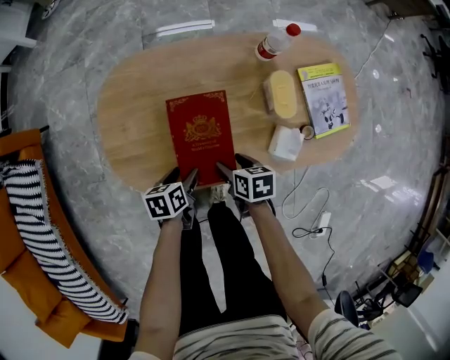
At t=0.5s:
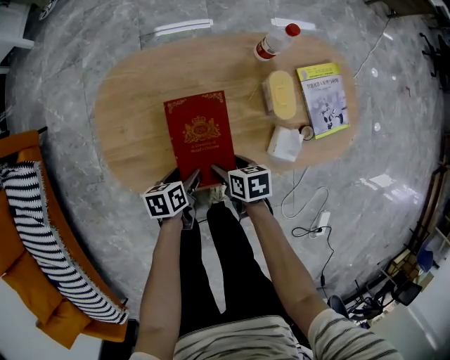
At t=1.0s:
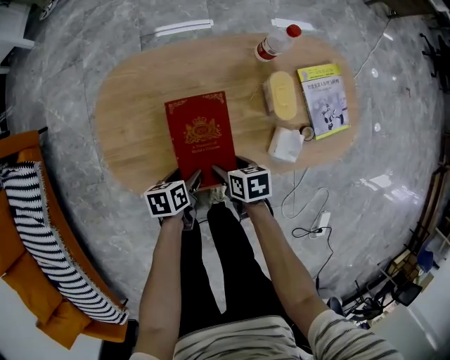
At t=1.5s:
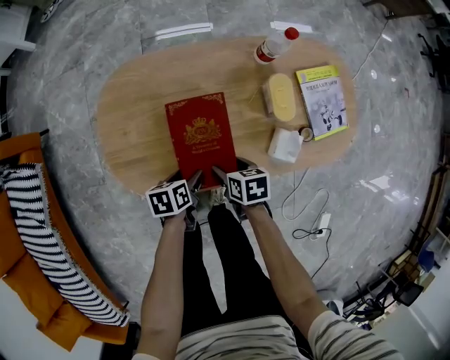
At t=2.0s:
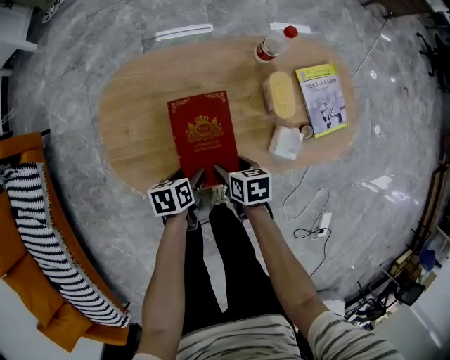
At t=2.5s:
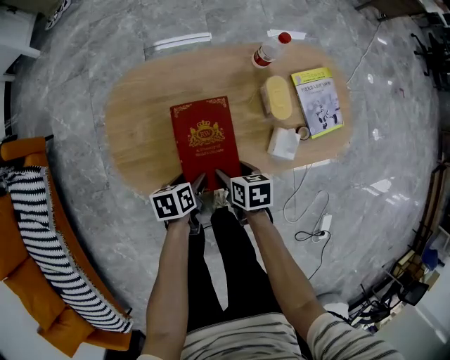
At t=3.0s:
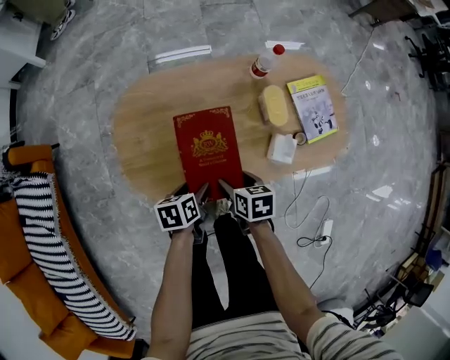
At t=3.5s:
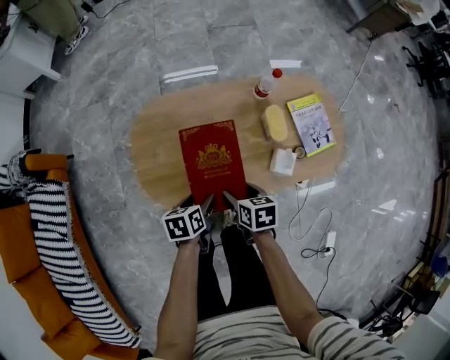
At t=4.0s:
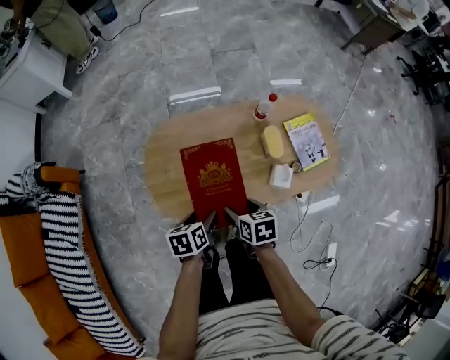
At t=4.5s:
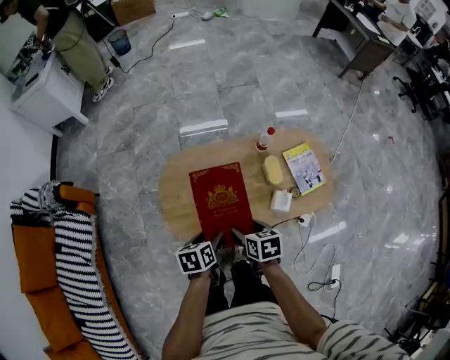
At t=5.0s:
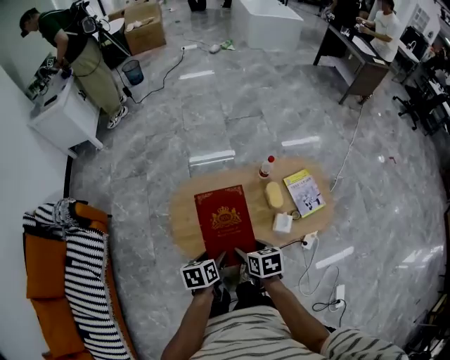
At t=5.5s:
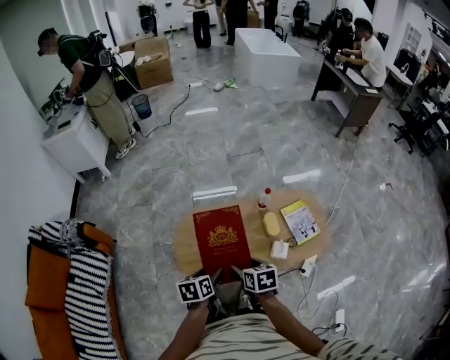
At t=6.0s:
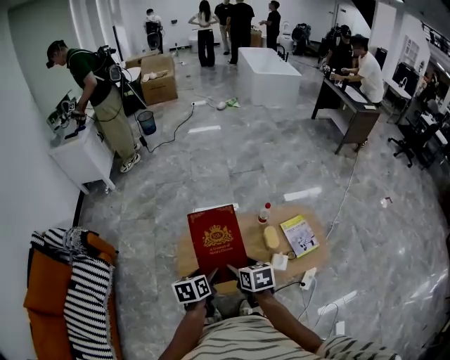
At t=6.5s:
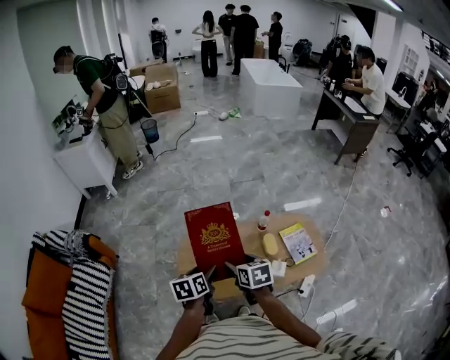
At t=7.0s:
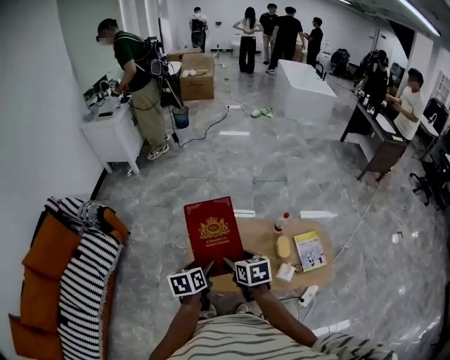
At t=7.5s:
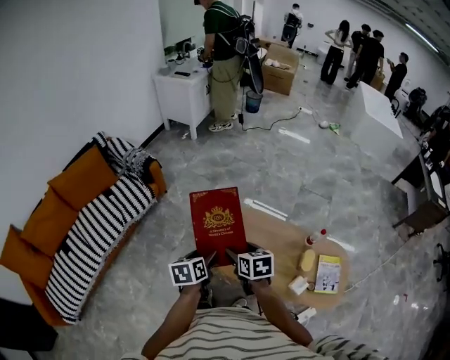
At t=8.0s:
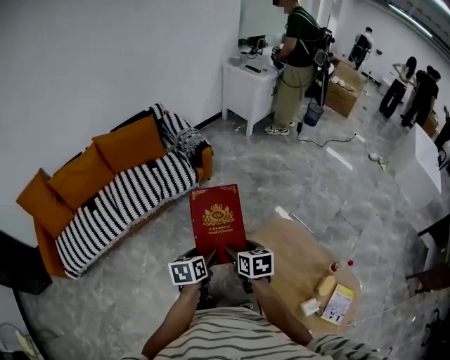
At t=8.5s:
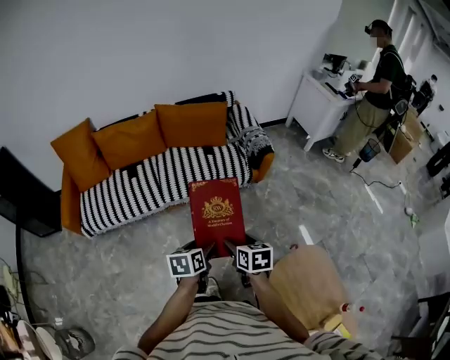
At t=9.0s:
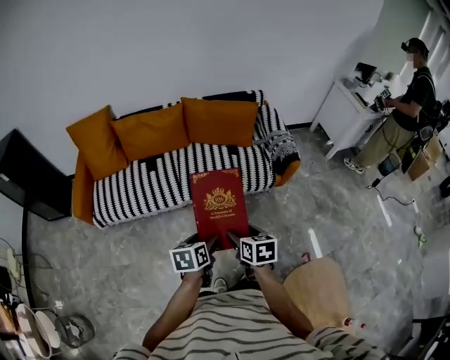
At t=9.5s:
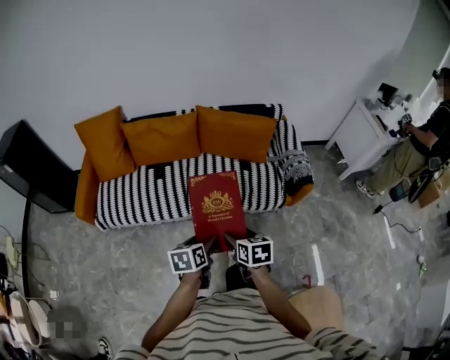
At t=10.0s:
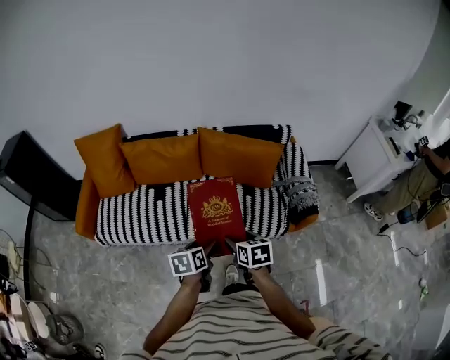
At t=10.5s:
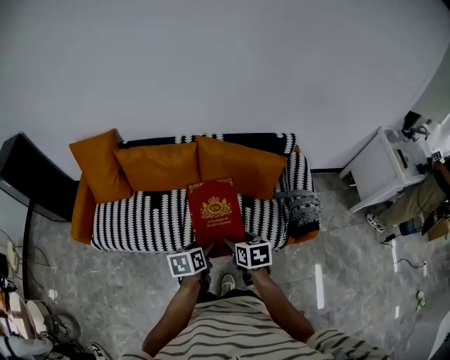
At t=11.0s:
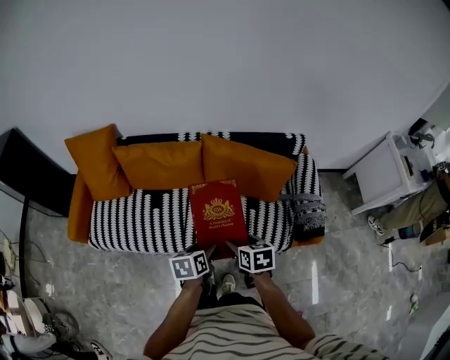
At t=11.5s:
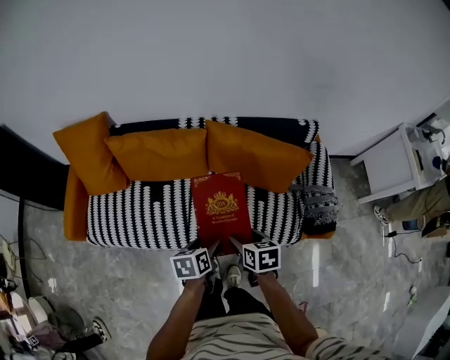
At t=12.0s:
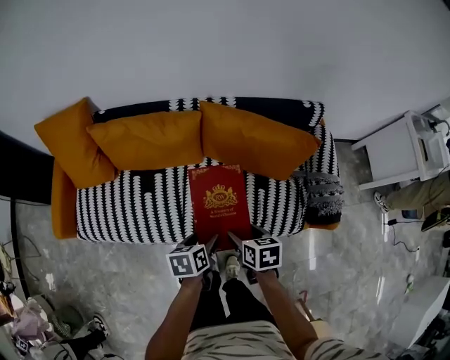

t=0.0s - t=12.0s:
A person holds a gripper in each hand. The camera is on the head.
t=0.0s - t=2.0s: The grippers stay close to where they were, moving slightly.
t=2.0s - t=4.0s: Both grippers move upward, about 20 cm.
t=4.0s - t=6.0s: Both grippers travel together upward, about 25 cm.
t=6.0s - t=8.0s: The right gripper shifts by approximately 35 cm, and turns by roughly 50 degrees. Meanwhile the left gripper ends up some 30 cm from where it was, and rotates approximately 50 degrees.
t=8.0s - t=10.0s: The pair of grippers is taken about 60 cm. The right gripper swivels some 40 degrees; the left gripper rotates some 40 degrees.
t=10.0s - t=12.0s: Both grippers travel together forward and downward, approximately 25 cm.

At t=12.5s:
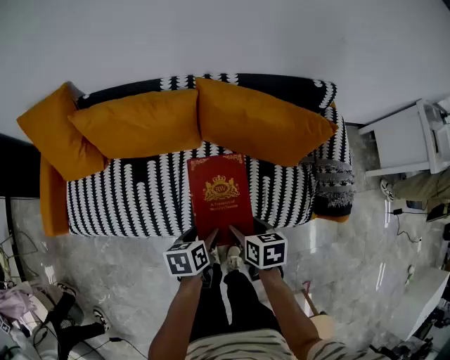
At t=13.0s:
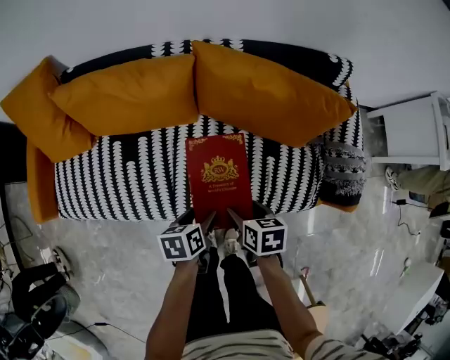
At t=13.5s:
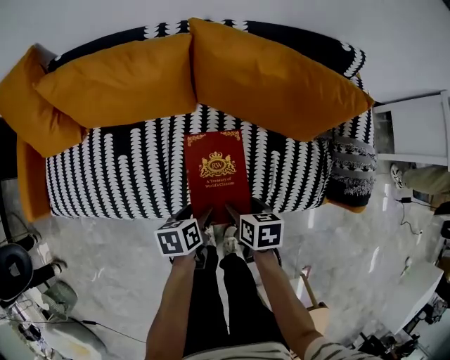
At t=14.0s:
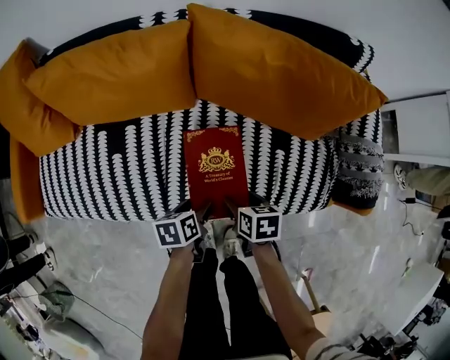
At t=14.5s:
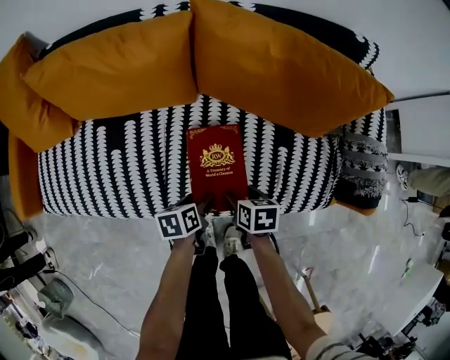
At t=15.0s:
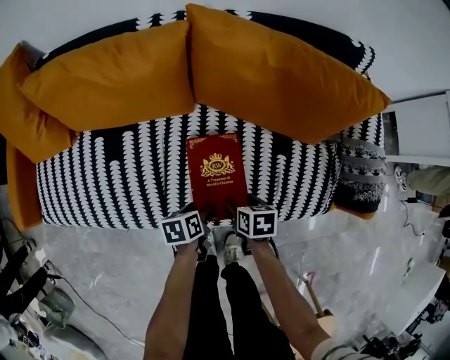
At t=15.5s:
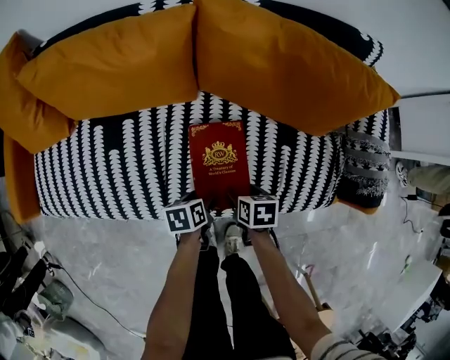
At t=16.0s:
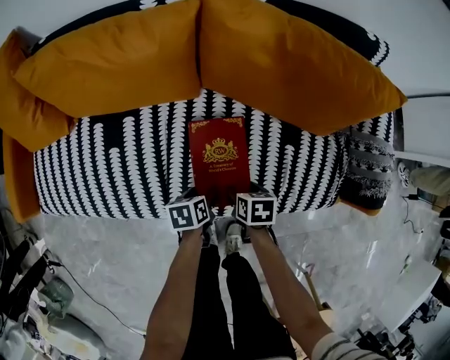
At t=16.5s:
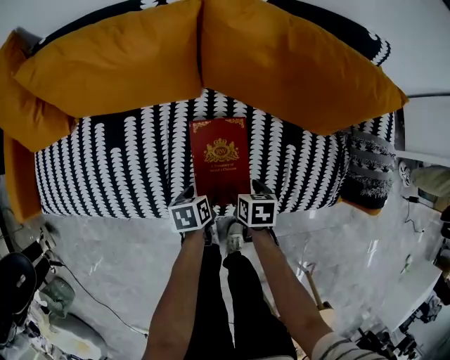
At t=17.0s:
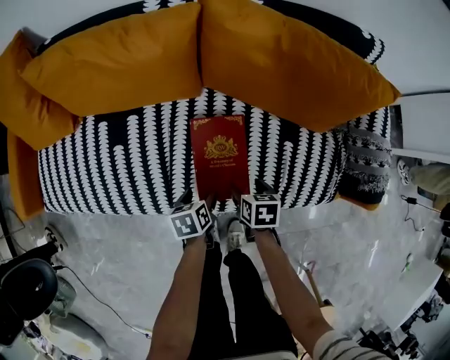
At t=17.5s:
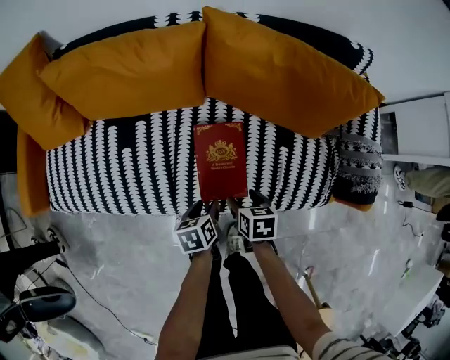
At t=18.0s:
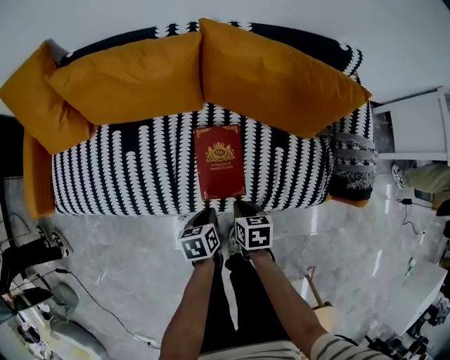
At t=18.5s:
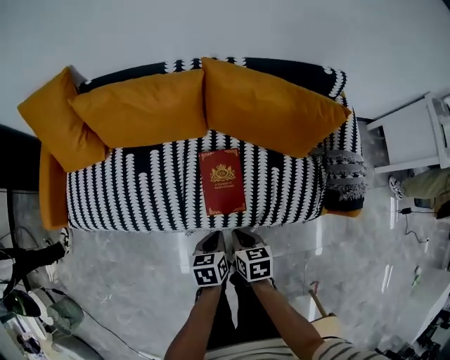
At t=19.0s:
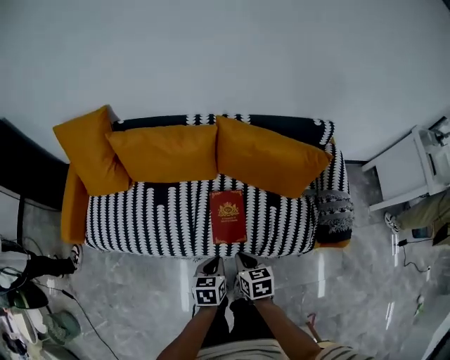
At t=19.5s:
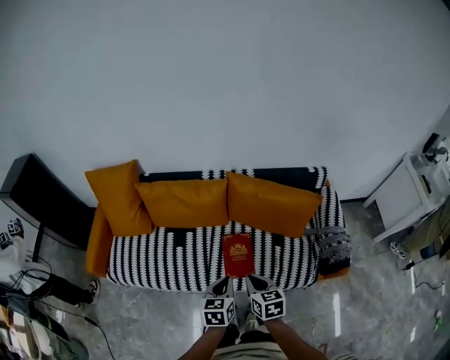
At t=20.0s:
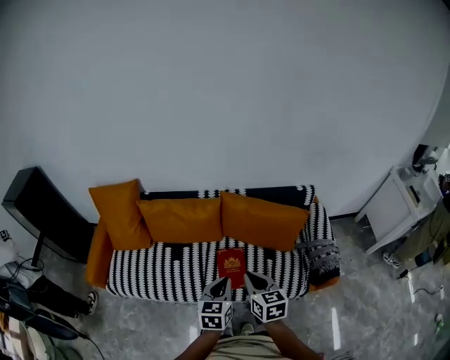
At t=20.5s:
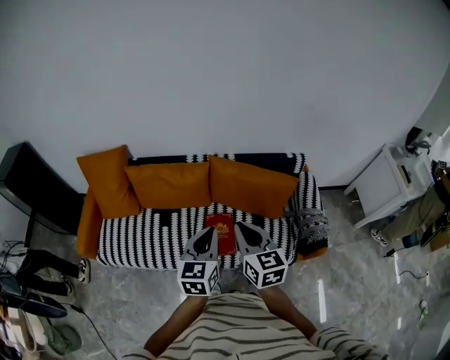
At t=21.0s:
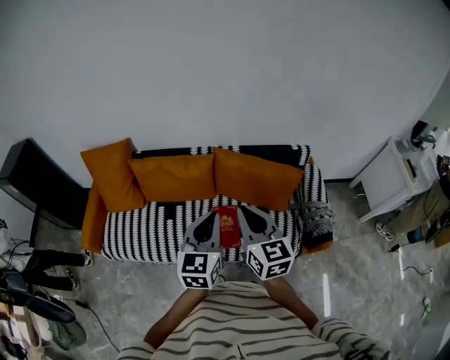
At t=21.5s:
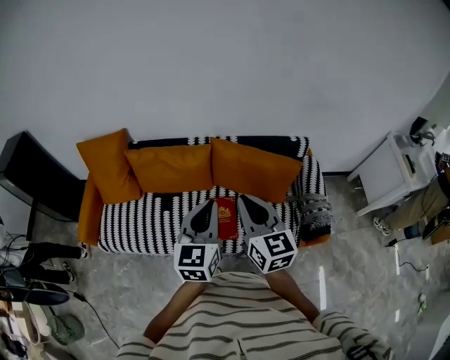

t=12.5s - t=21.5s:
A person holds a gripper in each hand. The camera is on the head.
t=12.5s - t=14.5s: Both grippers move downward, approximately 25 cm.
t=14.5s - t=17.0s: The grippers make only small movements.
t=17.0s - t=19.5s: The two grippers go some 40 cm upward. The left gripper turns by about 40 degrees, and closes. The right gripper turns by some 30 degrees, and closes.
t=19.5s - t=21.5s: Both grippers move upward, roughly 25 cm. The right gripper rotates approximately 30 degrees. The left gripper changes its angle by approximately 30 degrees.

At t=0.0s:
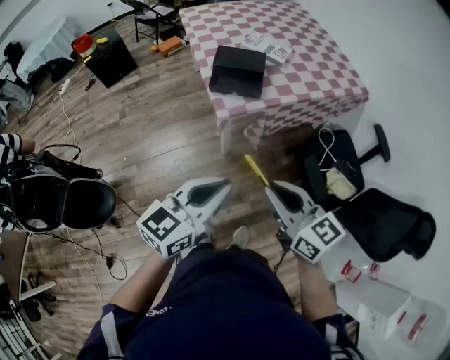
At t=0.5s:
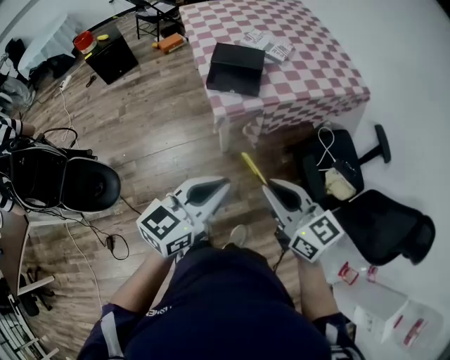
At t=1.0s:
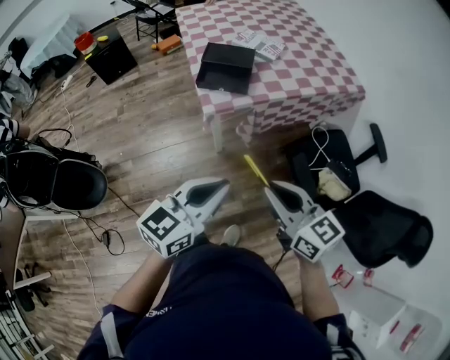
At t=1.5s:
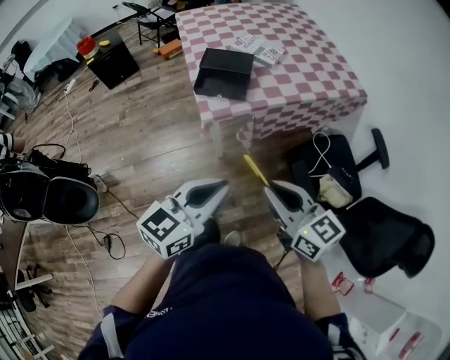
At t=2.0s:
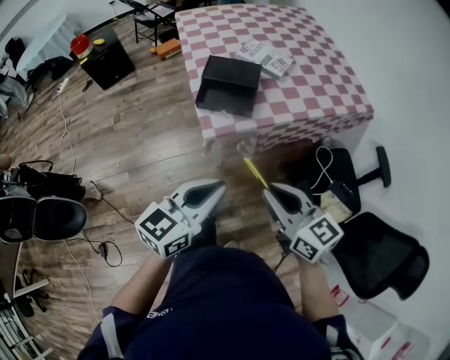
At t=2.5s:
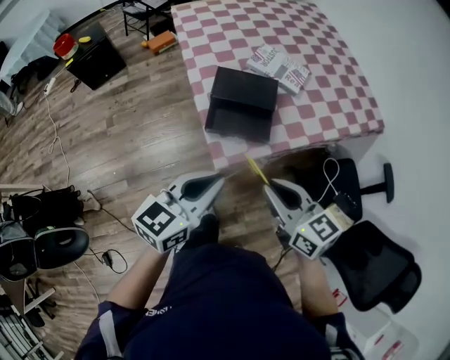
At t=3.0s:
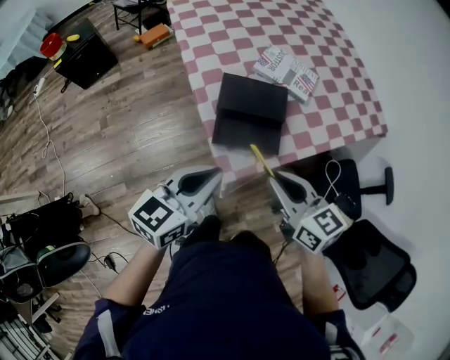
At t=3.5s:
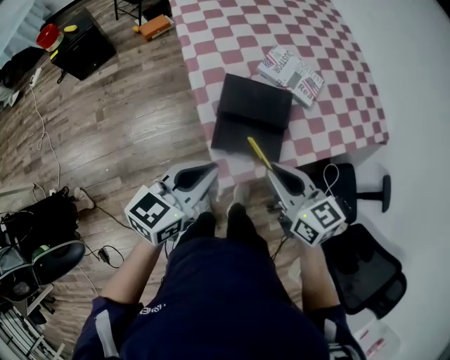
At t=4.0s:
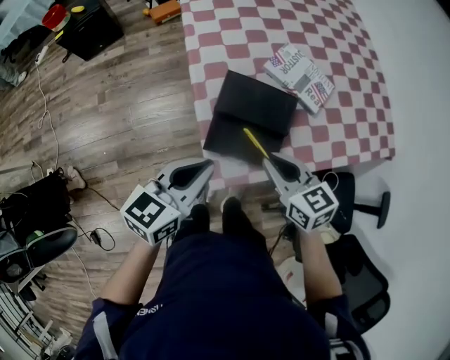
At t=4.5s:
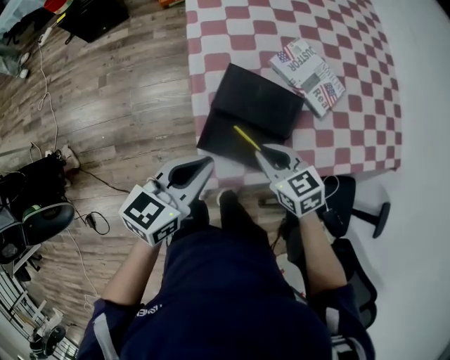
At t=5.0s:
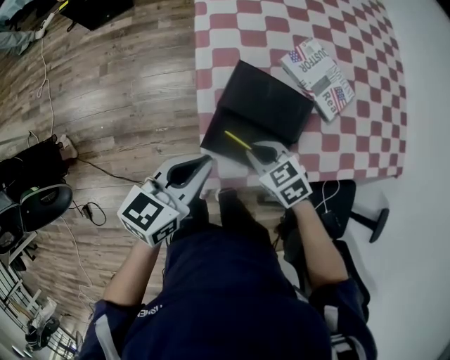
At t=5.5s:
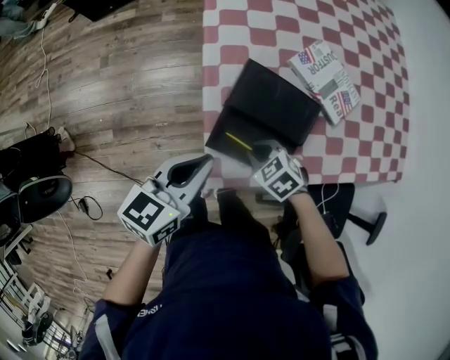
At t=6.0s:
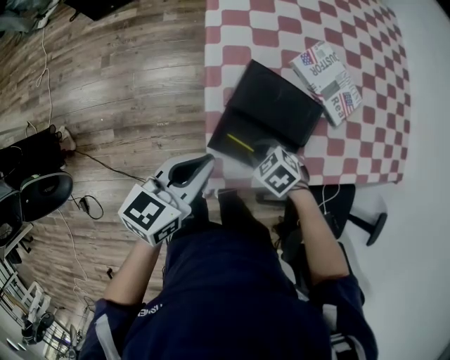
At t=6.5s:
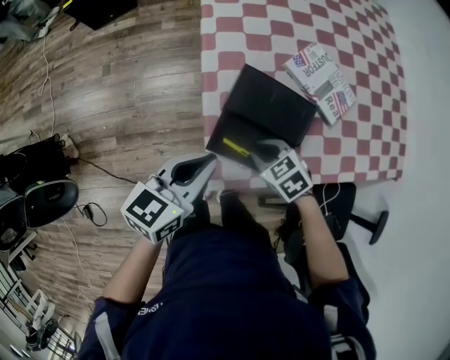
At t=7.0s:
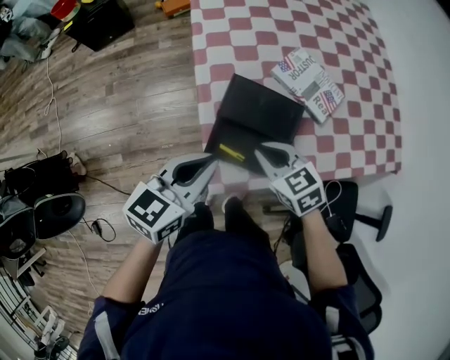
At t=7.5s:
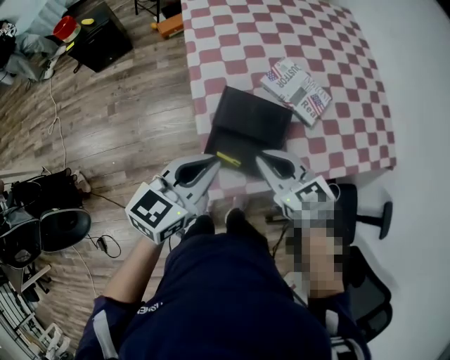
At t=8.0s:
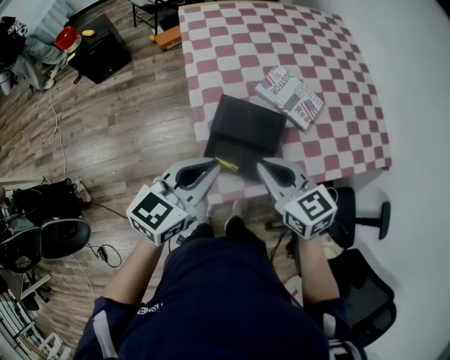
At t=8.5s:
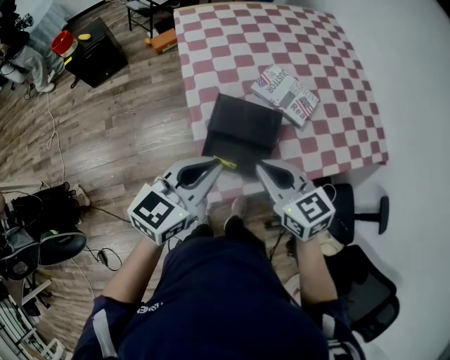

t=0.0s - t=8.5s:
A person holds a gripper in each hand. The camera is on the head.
t=0.0s - t=2.0s: The left gripper travels forward by roughly 10 cm. Meanwhile the right gripper is displaced forward and to the right by some 15 cm.
t=2.0s - t=4.0s: Both grippers move forward, some 35 cm.
t=4.0s - t=6.5s: The right gripper moves downward, about 15 cm, and rotates roughly 40 degrees. The left gripper moves about 5 cm.
t=6.5s - t=8.5s: The right gripper is displaced upward by some 20 cm, and tilts its fingers some 30 degrees upward, while the left gripper travels upward by roughly 10 cm.
